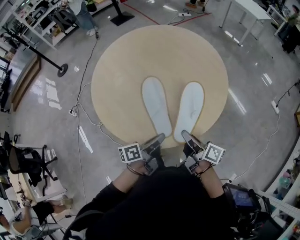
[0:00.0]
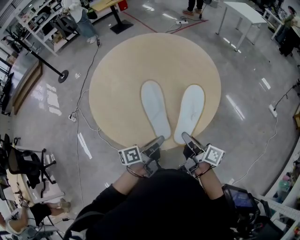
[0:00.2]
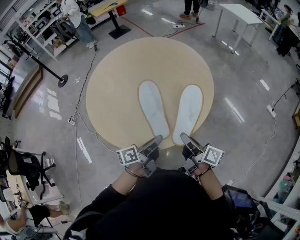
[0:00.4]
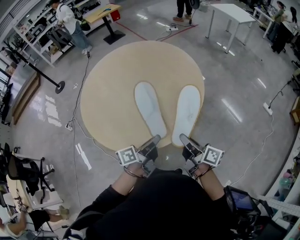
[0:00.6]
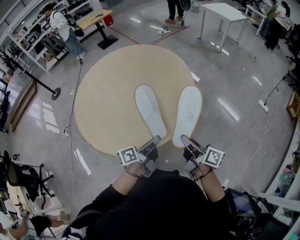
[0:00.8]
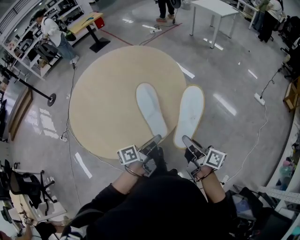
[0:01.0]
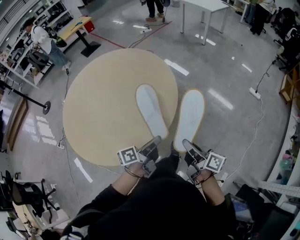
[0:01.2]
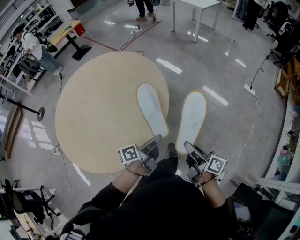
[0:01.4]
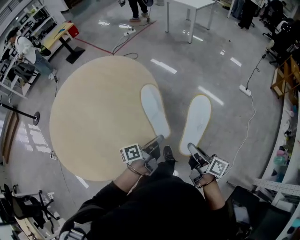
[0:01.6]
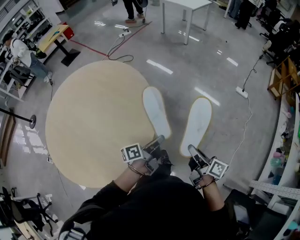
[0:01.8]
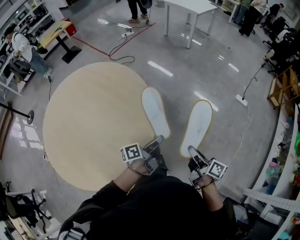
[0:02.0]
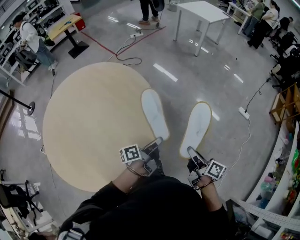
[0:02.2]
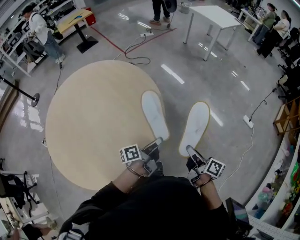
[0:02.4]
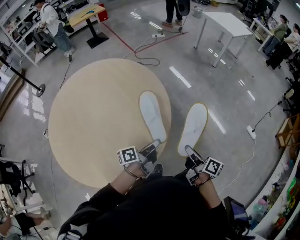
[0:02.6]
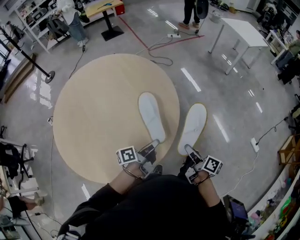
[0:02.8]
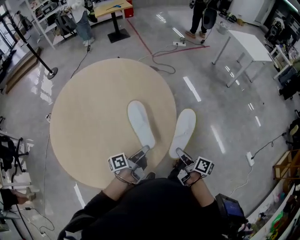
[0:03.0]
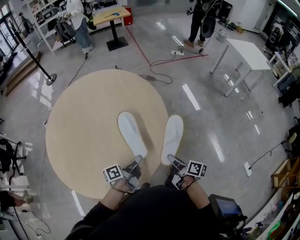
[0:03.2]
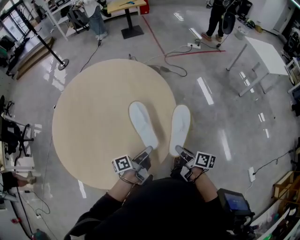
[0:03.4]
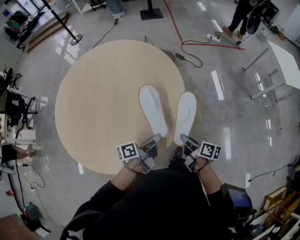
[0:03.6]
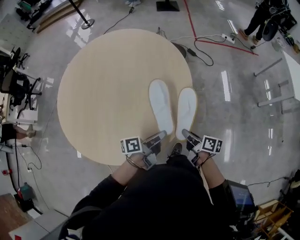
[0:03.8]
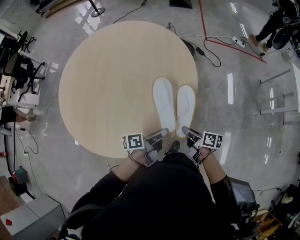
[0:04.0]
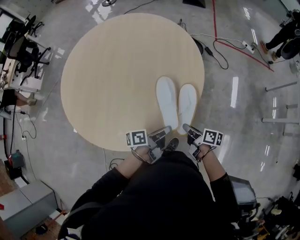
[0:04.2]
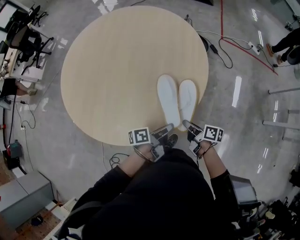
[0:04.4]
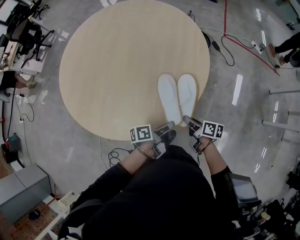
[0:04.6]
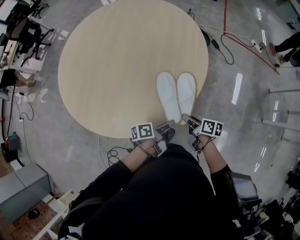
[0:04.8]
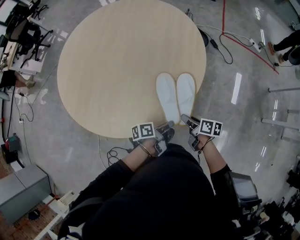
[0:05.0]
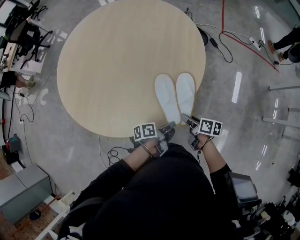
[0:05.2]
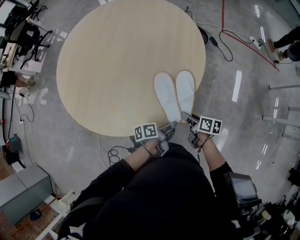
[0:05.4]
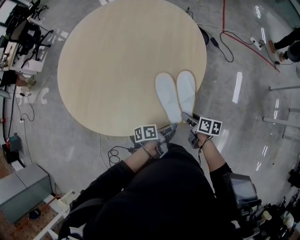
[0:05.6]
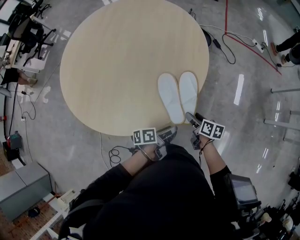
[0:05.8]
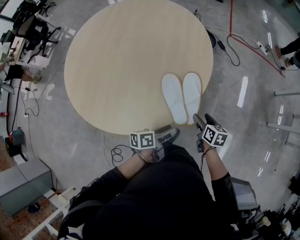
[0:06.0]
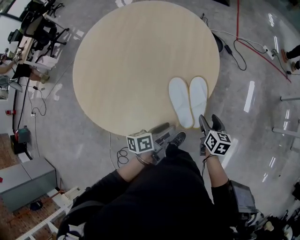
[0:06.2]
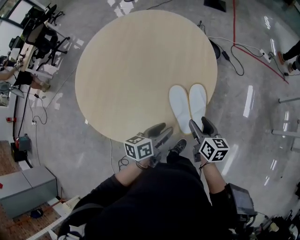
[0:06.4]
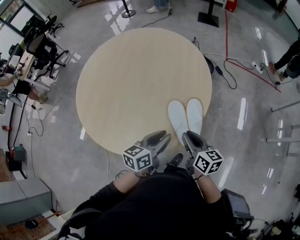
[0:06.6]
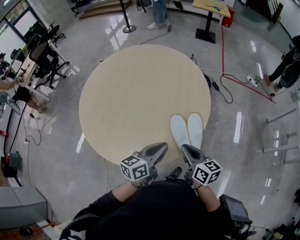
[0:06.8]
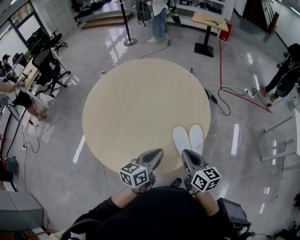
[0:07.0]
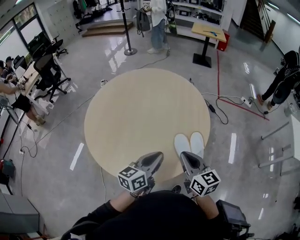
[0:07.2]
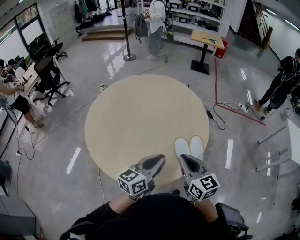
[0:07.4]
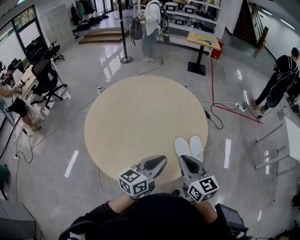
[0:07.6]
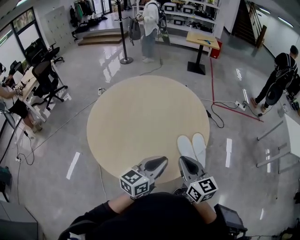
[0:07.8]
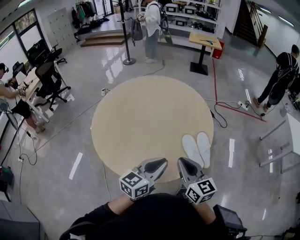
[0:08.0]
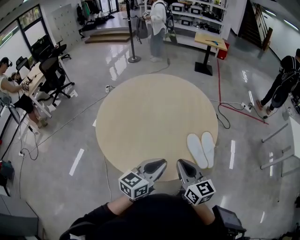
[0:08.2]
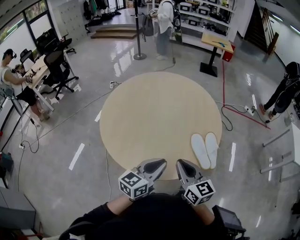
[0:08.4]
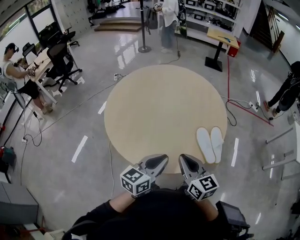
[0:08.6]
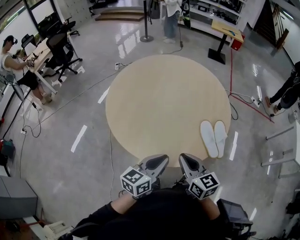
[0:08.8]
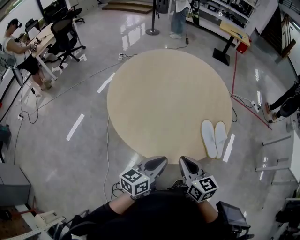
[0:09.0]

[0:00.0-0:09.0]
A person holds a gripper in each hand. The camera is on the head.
0.0 to 1.6 s: The two grippers travel together, to the right, about 40 cm. The right gripper rotates roughly 20 degrees.
1.6 to 3.0 s: The right gripper moves about 35 cm, and changes its angle by roughly 30 degrees. Meanwhile the left gripper shifts by approximately 25 cm, and changes its angle by approximately 30 degrees.
3.0 to 4.4 s: The left gripper shifts by about 20 cm, and rotates approximately 30 degrees. Meanwhile the right gripper changes place by some 25 cm, and changes its angle by approximately 50 degrees.
4.4 to 6.0 s: The right gripper heads to the right, covering about 5 cm, rotates some 40 degrees, and opens its fingers. The left gripper travels downward and back again, some 10 cm each way, and opens.
6.0 to 7.6 s: Both grippers travel together upward and to the left, approximately 40 cm. The right gripper tips its fingers upward by roughly 30 degrees, and closes up. Meanwhile the left gripper rotates around the line of its fingers by about 50 degrees, clockwise from behind, and closes its fingers.
7.6 to 9.0 s: The two grippers go about 20 cm to the left, backward and downward.

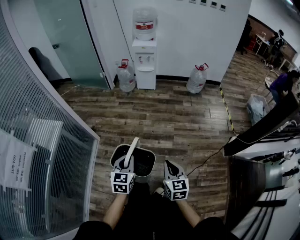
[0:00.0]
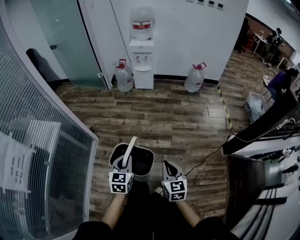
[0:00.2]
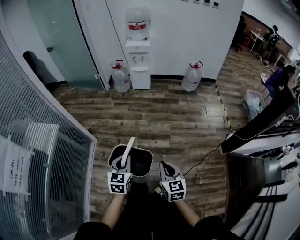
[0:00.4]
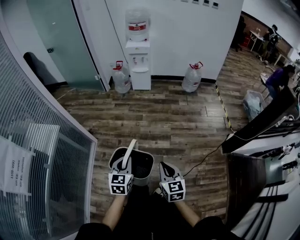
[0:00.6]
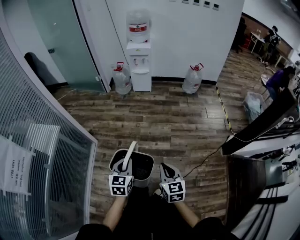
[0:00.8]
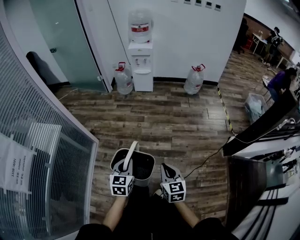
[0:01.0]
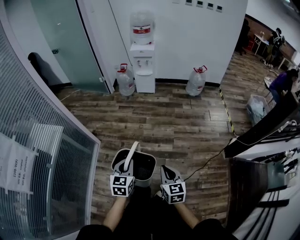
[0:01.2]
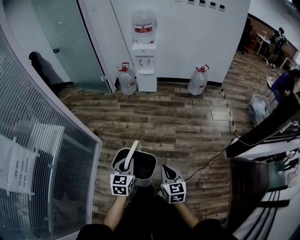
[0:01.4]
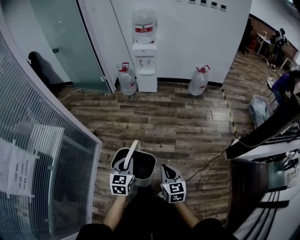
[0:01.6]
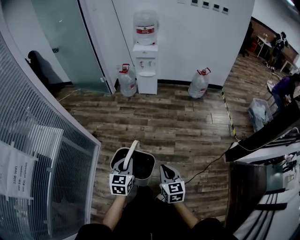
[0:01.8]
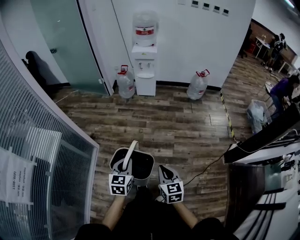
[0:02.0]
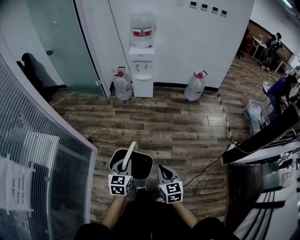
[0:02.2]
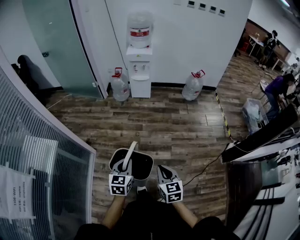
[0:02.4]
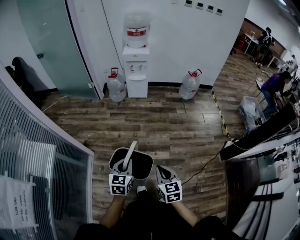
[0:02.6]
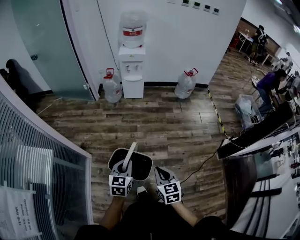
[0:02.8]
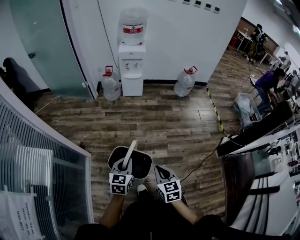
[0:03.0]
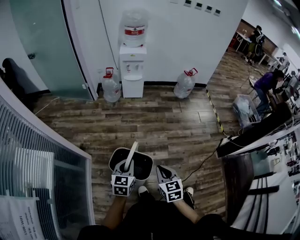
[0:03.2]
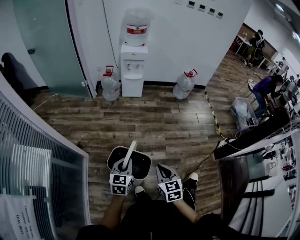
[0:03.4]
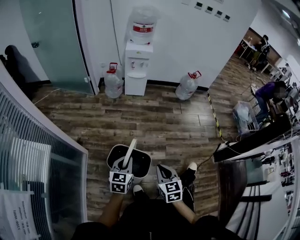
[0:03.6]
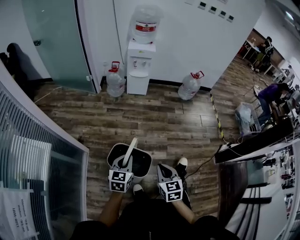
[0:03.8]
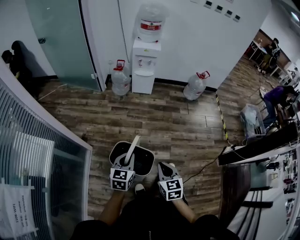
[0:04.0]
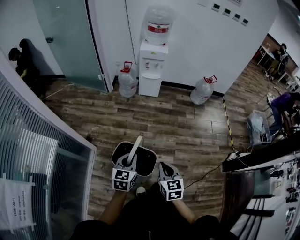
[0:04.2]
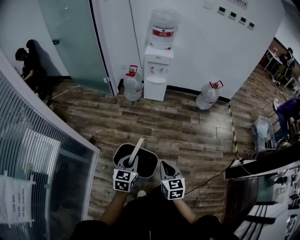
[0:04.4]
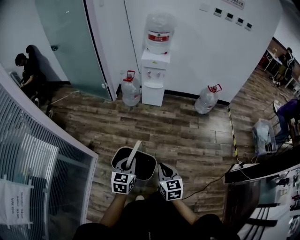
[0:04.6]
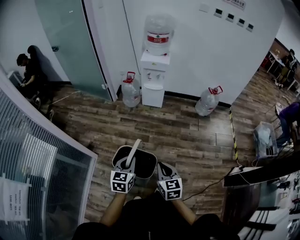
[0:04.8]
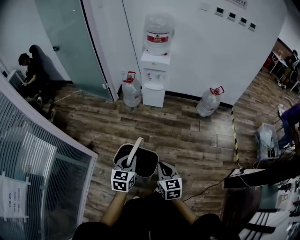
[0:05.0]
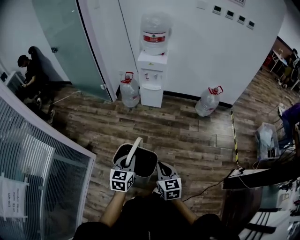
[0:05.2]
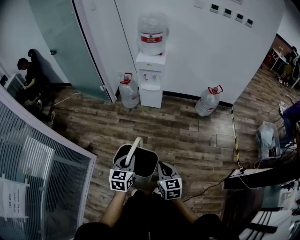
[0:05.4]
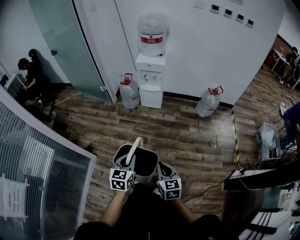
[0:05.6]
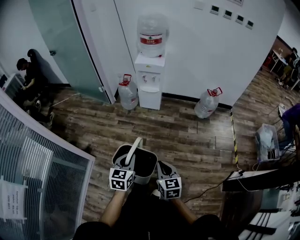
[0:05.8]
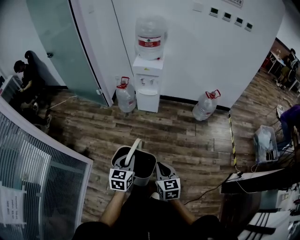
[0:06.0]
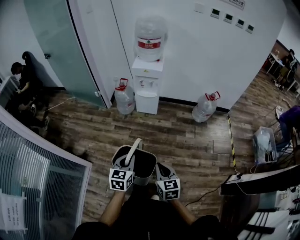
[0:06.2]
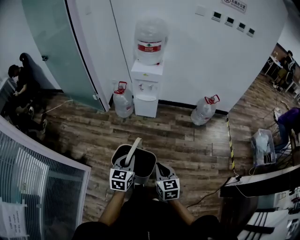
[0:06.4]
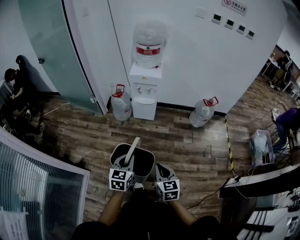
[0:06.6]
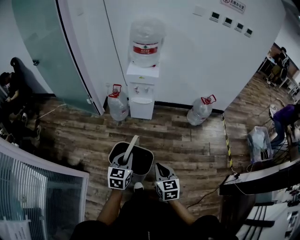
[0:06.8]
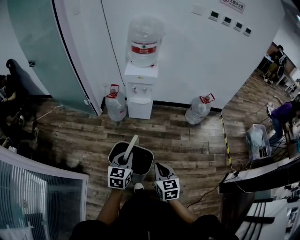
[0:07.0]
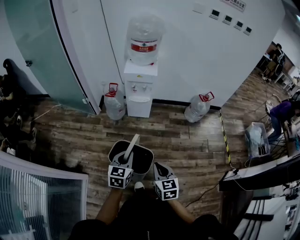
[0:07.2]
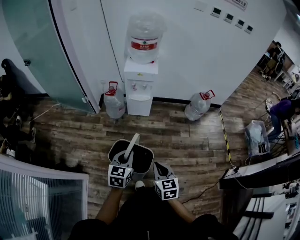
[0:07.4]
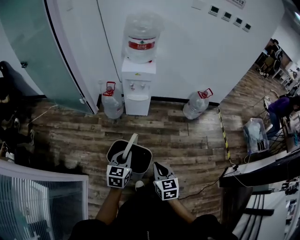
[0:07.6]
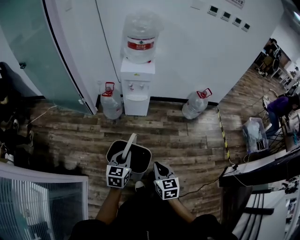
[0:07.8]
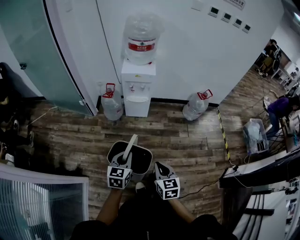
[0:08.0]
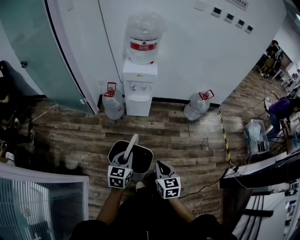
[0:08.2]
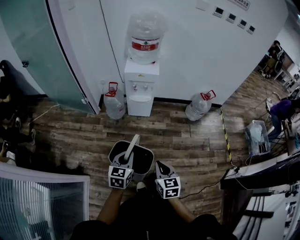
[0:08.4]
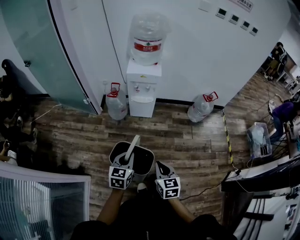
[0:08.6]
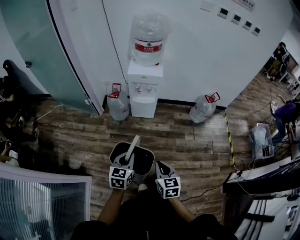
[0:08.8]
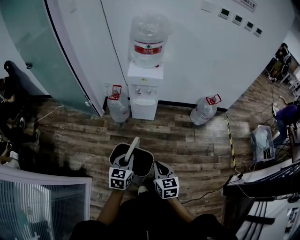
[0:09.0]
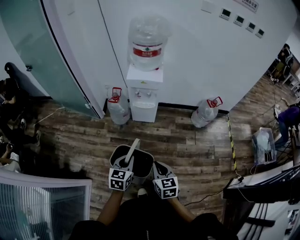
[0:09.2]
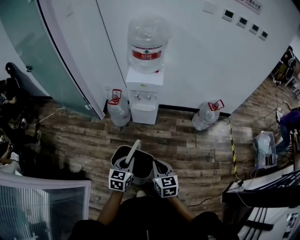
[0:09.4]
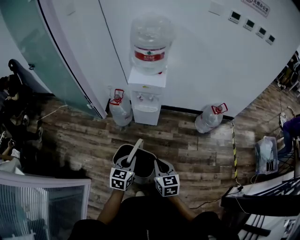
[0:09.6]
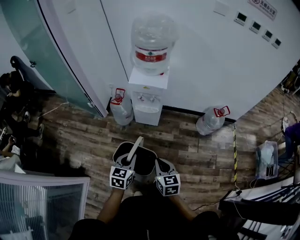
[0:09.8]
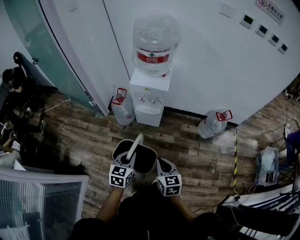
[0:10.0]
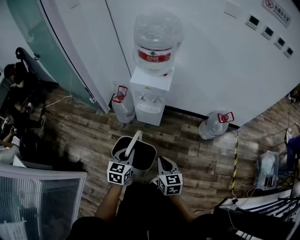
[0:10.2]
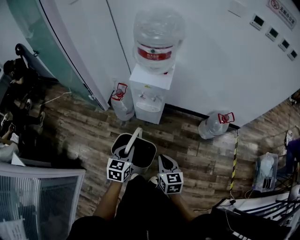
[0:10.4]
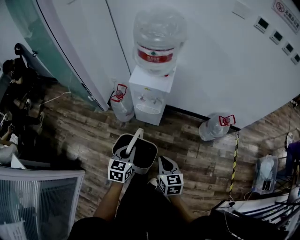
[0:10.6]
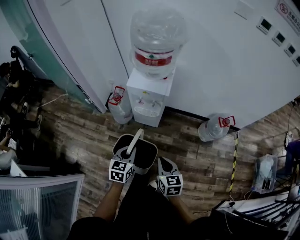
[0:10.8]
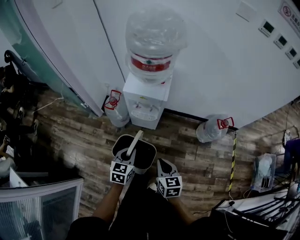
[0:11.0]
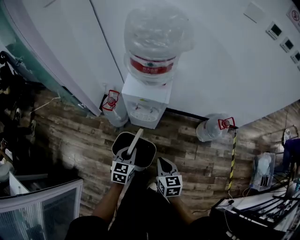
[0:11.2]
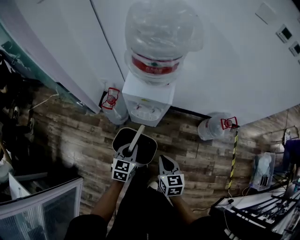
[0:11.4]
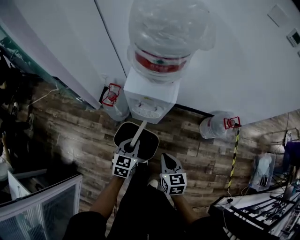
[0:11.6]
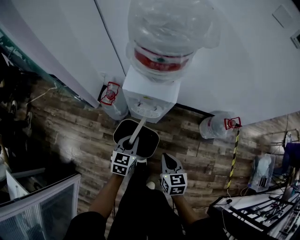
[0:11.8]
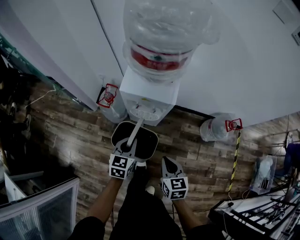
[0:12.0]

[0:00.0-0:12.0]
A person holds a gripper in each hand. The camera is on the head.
0.0 to 1.6 s: The grippers move only a little.
1.6 to 3.0 s: Both grippers travel together forward and to the left, roughly 15 cm.
3.0 to 4.4 s: Both grippers travel together forward, about 10 cm.
4.4 to 6.0 s: Both grippers travel together forward and to the right, approximately 15 cm.
6.0 to 7.6 s: Both grippers travel together forward and to the left, roughly 20 cm.
7.6 to 9.0 s: The right gripper moves forward, approximately 5 cm.
9.0 to 10.4 s: Both grippers move forward and to the right, some 20 cm.
10.4 to 12.0 s: The two grippers go about 25 cm forward and downward.

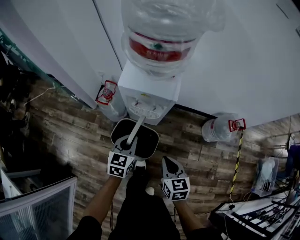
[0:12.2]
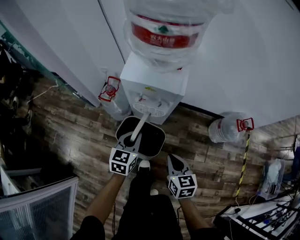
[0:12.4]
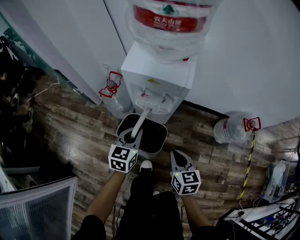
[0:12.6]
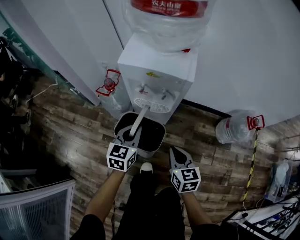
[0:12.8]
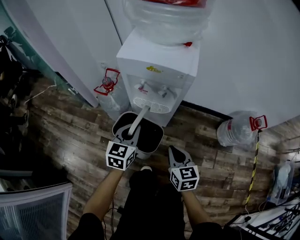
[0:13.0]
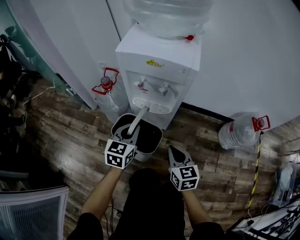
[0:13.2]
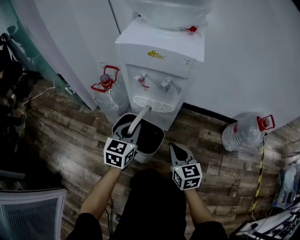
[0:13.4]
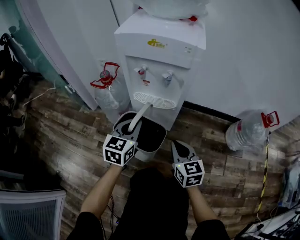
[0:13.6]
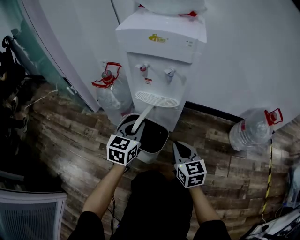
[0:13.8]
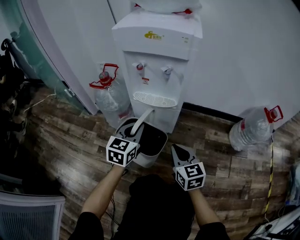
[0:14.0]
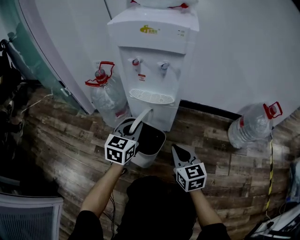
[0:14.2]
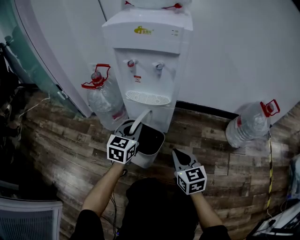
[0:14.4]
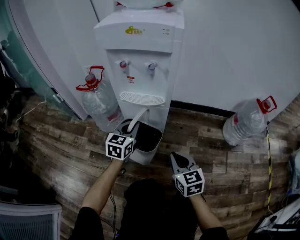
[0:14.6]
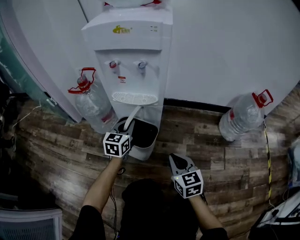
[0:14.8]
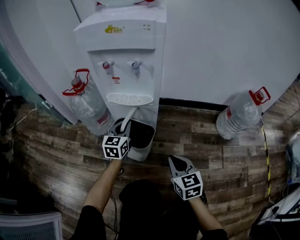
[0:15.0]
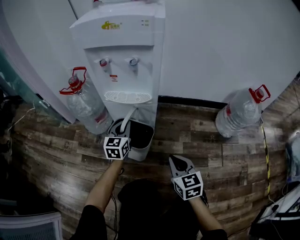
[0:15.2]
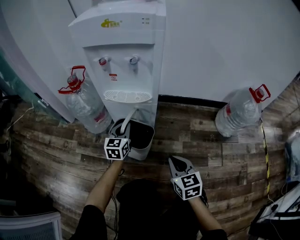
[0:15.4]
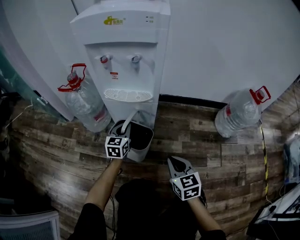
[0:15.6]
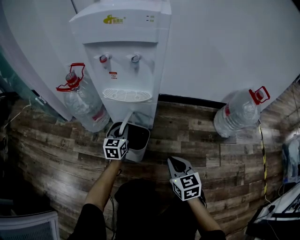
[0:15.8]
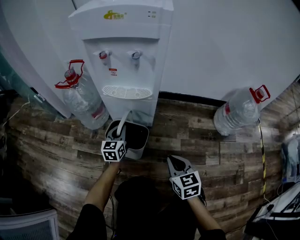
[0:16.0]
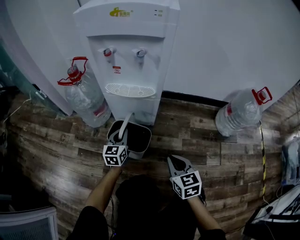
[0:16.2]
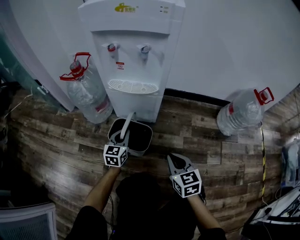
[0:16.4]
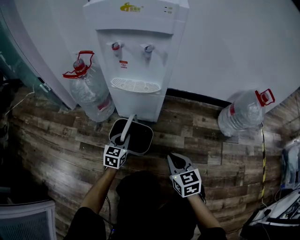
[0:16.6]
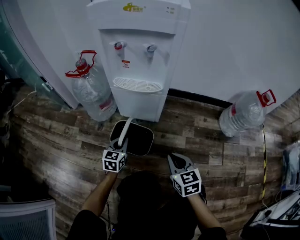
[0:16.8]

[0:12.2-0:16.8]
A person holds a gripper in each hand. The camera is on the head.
12.2 to 13.8 s: Both grippers travel together downward, roughly 30 cm.
13.8 to 15.2 s: The right gripper shifts approximately 15 cm downward, to the right and backward, while the left gripper is displaced downward and forward by approximately 15 cm.
15.2 to 16.8 s: The left gripper goes roughly 15 cm downward, backward and to the left.
